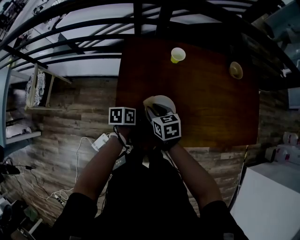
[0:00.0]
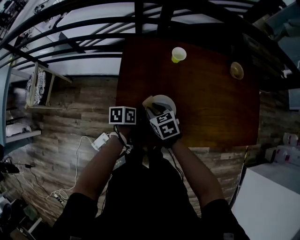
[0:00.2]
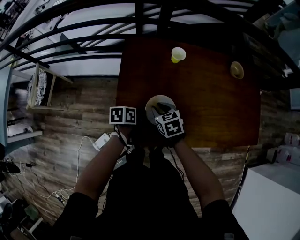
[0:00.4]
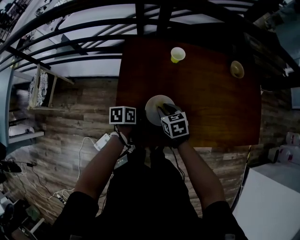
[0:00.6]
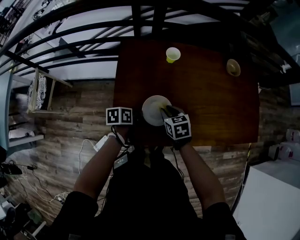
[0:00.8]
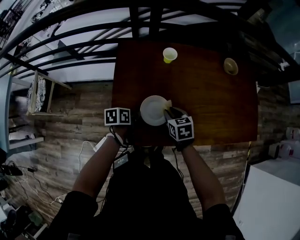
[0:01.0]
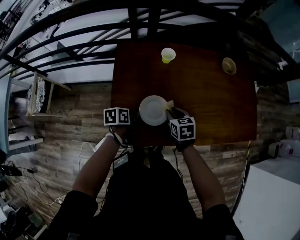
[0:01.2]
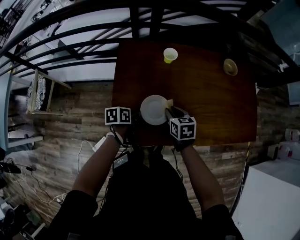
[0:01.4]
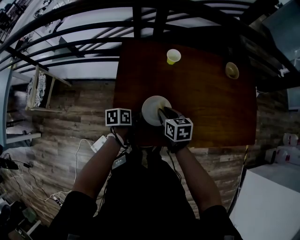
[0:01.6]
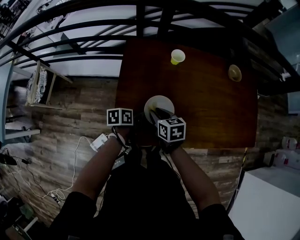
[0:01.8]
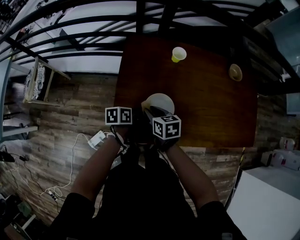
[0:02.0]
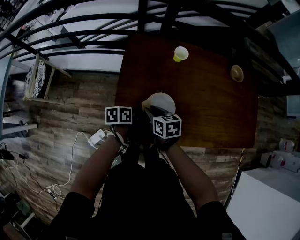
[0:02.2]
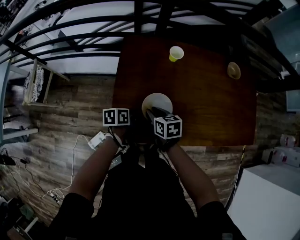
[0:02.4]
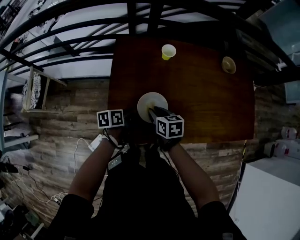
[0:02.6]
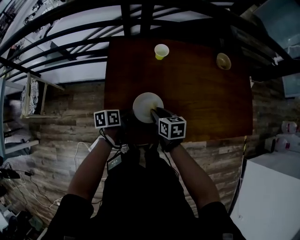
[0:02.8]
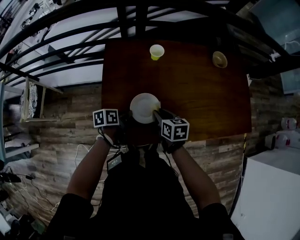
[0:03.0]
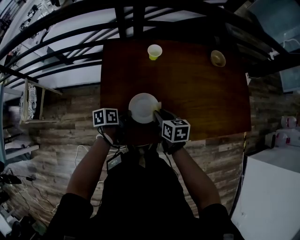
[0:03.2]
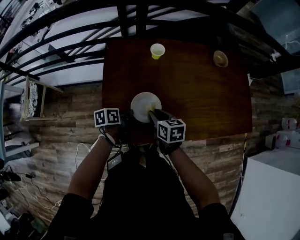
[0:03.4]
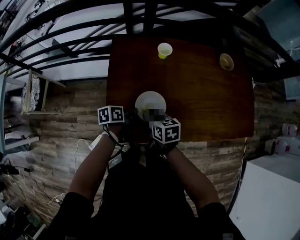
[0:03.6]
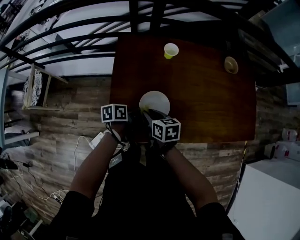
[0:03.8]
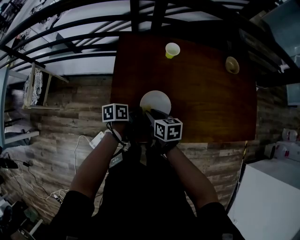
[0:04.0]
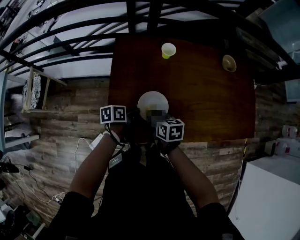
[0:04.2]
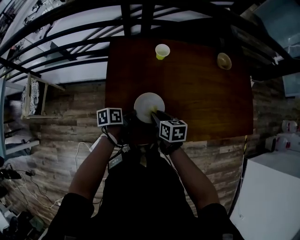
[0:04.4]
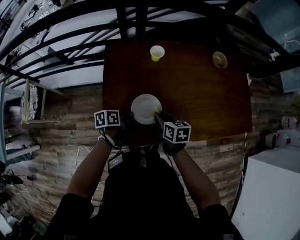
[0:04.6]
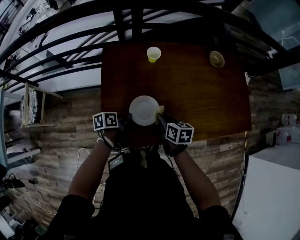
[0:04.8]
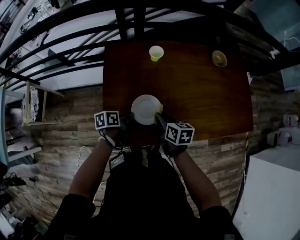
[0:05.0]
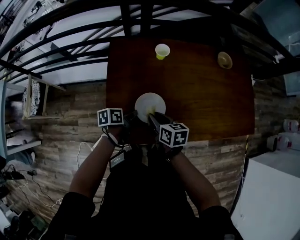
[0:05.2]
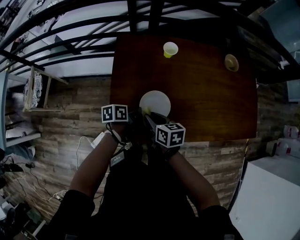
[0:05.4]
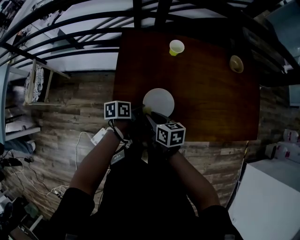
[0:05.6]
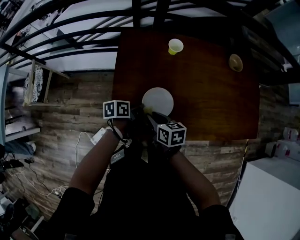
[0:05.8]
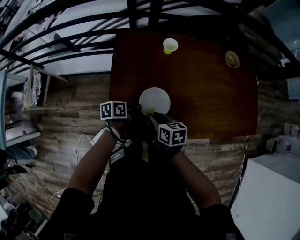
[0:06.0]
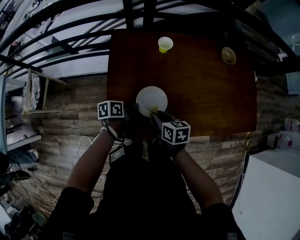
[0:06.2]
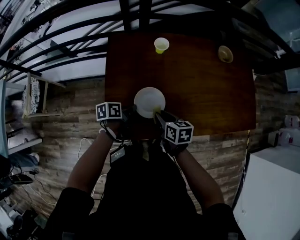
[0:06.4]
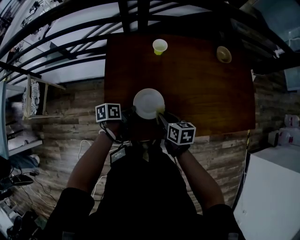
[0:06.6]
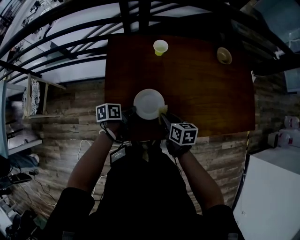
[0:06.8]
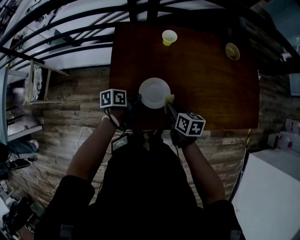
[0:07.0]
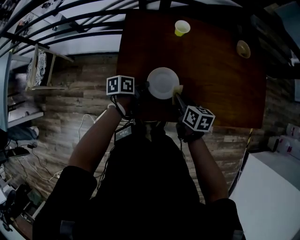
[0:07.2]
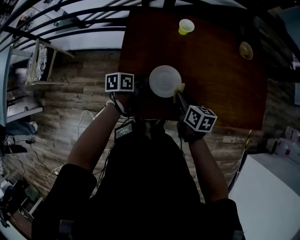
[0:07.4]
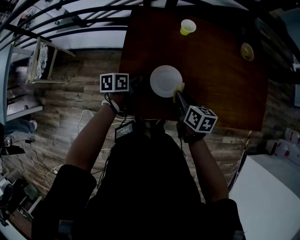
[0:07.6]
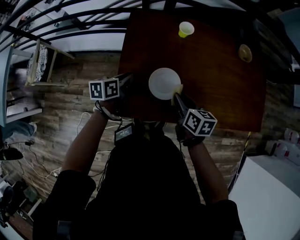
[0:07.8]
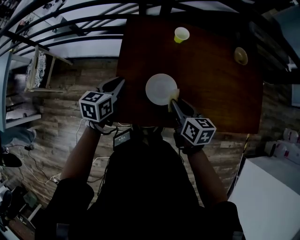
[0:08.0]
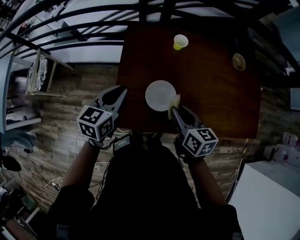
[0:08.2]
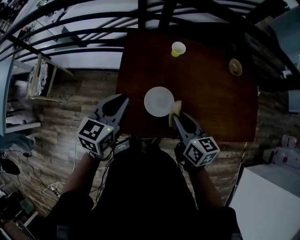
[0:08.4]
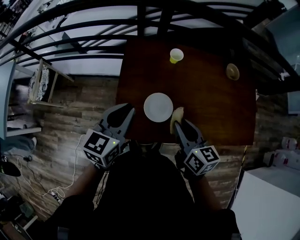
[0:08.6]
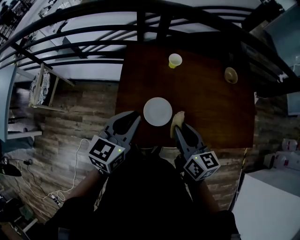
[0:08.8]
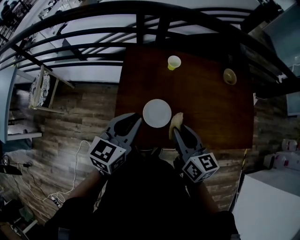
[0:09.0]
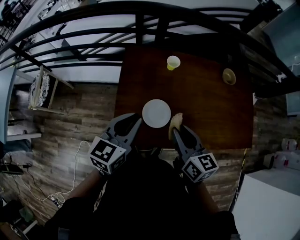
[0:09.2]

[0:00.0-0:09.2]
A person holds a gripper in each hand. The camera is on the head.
0:00.0 to 0:01.6: The right gripper is displaced to the right by about 5 cm.
0:01.6 to 0:03.0: The right gripper reaches approximately 10 cm to the left, then returns.
0:03.0 to 0:04.6: The right gripper goes to the left and returns, roughly 10 cm each way.
0:04.6 to 0:06.2: The right gripper goes to the left and returns, some 10 cm each way.
0:06.2 to 0:07.6: The right gripper changes place by roughly 5 cm; the left gripper shifts approximately 5 cm to the left.
0:07.6 to 0:09.2: Both grippers move upward, approximately 20 cm. The right gripper rotates about 20 degrees, while the left gripper changes its angle by some 50 degrees.

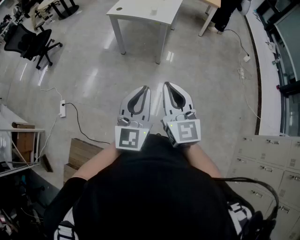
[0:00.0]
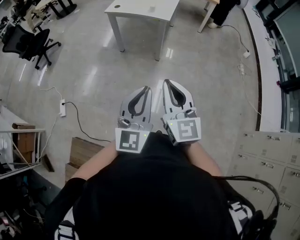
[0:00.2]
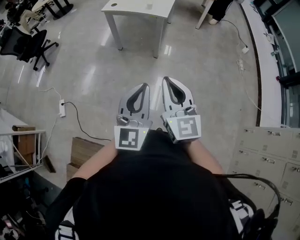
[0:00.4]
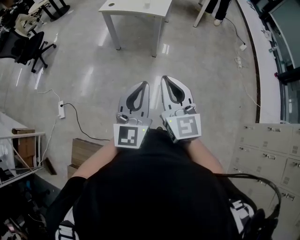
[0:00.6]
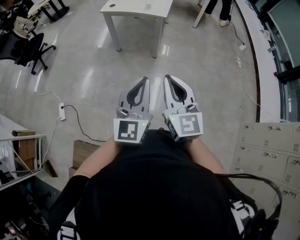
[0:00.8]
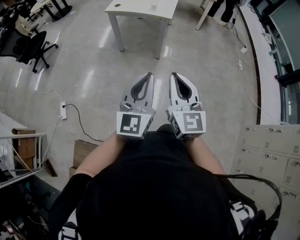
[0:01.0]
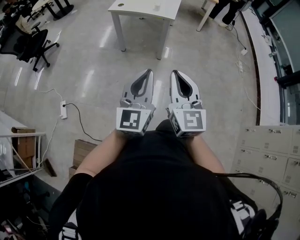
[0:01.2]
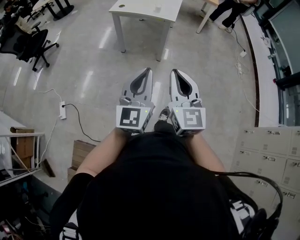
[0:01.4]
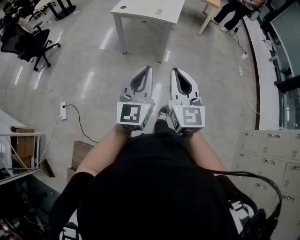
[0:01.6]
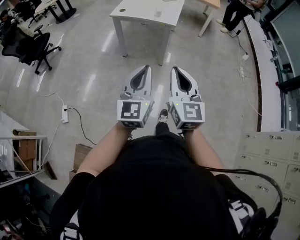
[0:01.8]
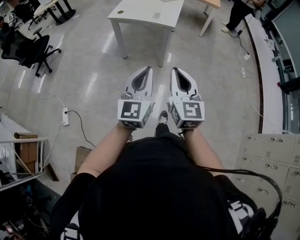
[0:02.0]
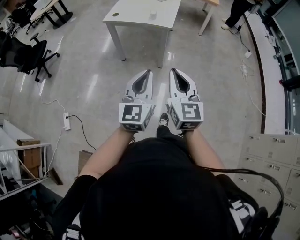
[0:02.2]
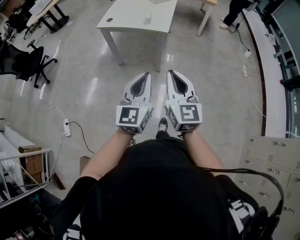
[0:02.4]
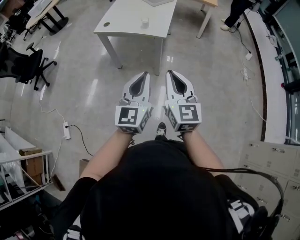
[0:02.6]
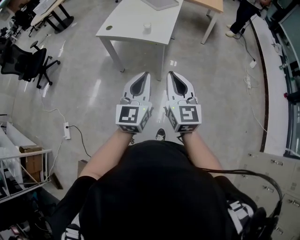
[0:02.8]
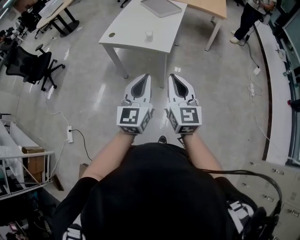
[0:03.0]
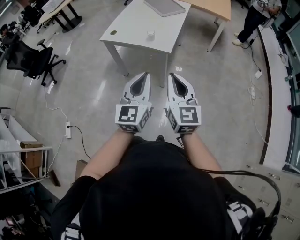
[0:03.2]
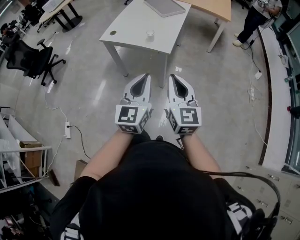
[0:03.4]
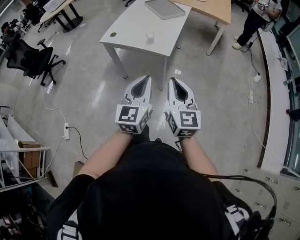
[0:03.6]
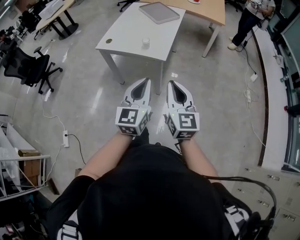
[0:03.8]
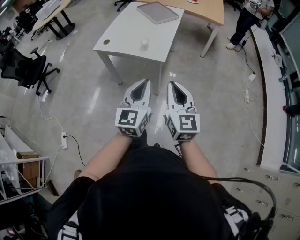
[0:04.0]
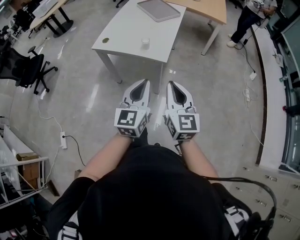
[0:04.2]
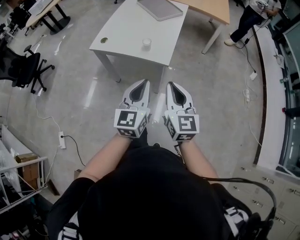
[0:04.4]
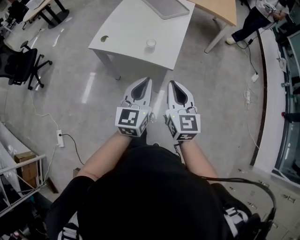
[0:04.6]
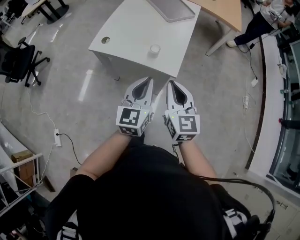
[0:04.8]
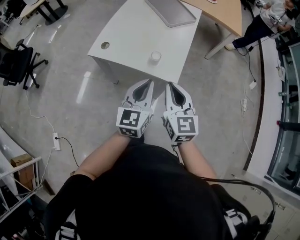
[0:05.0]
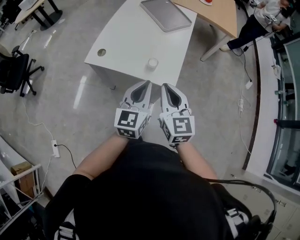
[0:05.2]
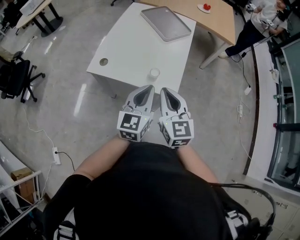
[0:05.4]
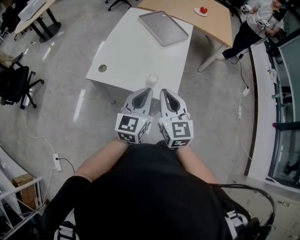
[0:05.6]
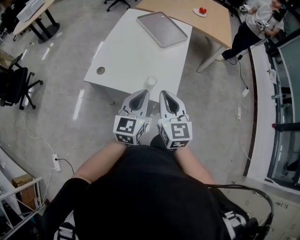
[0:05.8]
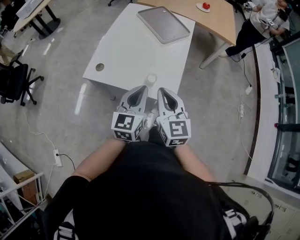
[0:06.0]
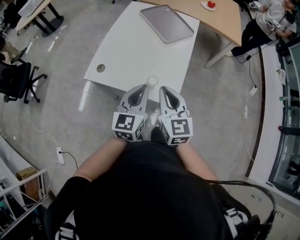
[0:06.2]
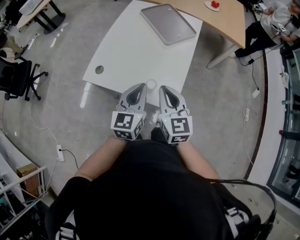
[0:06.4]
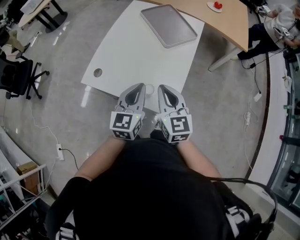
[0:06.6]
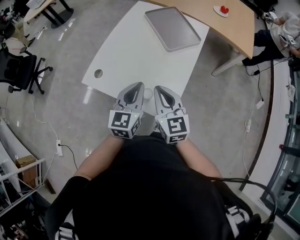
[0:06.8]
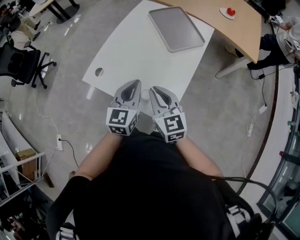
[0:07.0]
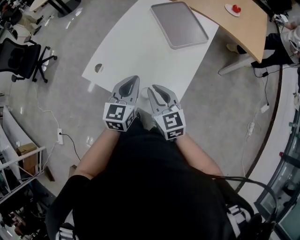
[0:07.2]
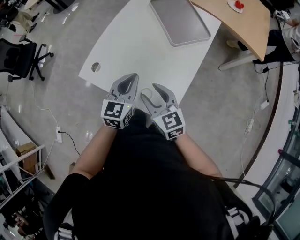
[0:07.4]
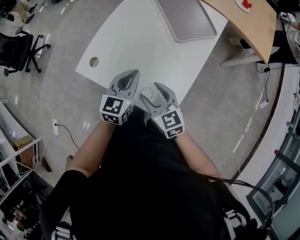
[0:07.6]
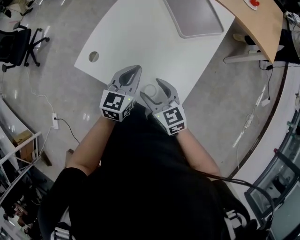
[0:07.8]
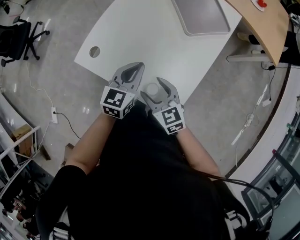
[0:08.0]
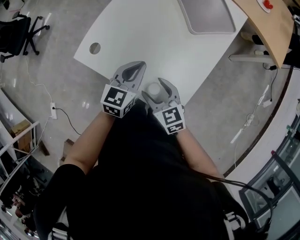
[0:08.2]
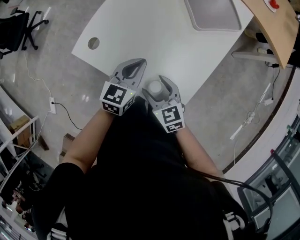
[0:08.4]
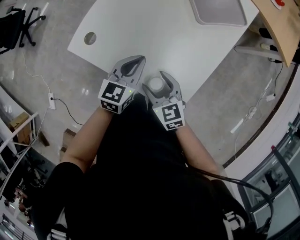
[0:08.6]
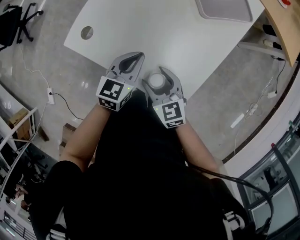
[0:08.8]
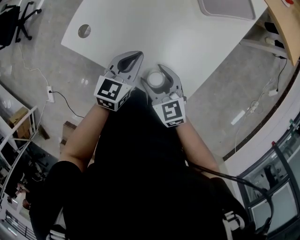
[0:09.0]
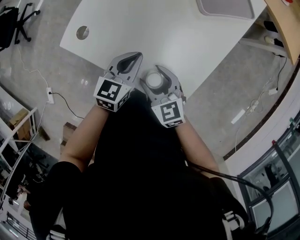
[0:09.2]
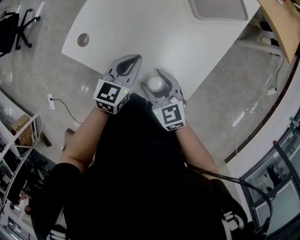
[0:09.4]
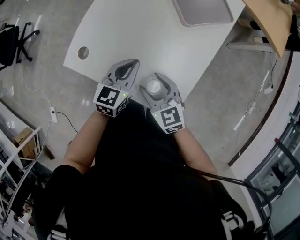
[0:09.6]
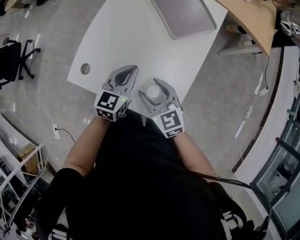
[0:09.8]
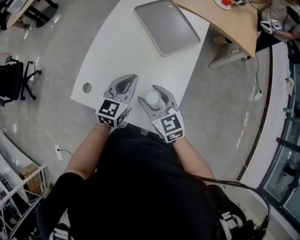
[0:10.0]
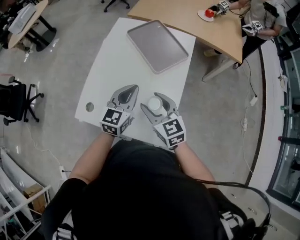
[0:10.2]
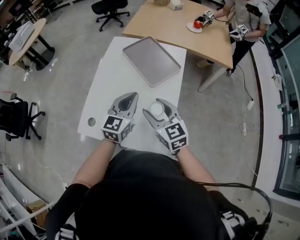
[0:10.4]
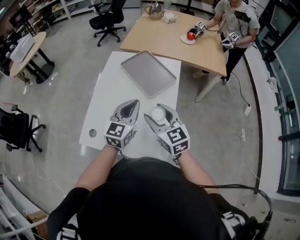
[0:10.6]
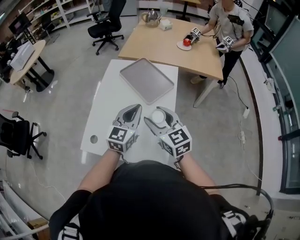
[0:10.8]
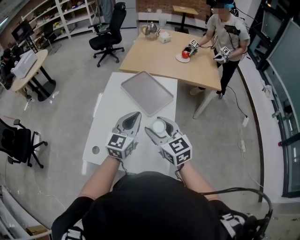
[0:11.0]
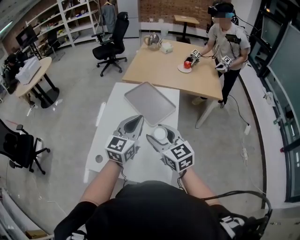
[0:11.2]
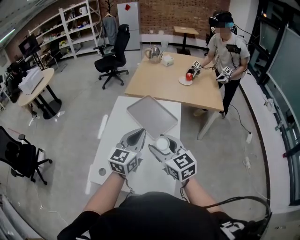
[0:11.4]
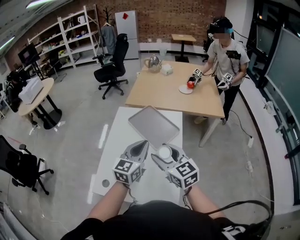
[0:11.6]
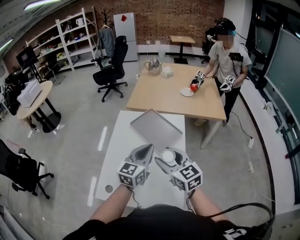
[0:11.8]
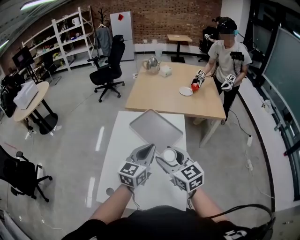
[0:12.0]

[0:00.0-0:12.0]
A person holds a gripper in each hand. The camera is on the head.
0:00.0 to 0:01.6: Both grippers move to the left, approximately 10 cm.
0:01.6 to 0:03.0: Both grippers travel together forward, roughly 35 cm.
0:03.0 to 0:04.4: The grippers both shift forward by approximately 15 cm.
0:04.4 to 0:06.0: The left gripper heads forward, covering roughly 30 cm. Meanwhile the right gripper goes some 30 cm forward and to the left.
0:06.0 to 0:07.6: The grippers both shift forward and downward by roughly 25 cm. The right gripper swivels approximately 40 degrees, and opens.
0:07.6 to 0:09.0: Both grippers move downward, some 15 cm.
0:09.0 to 0:10.4: The grippers both shift upward by some 25 cm. The left gripper rotates roughly 30 degrees, while the right gripper rotates approximately 30 degrees.
0:10.4 to 0:12.0: Both grippers travel together upward and forward, about 15 cm.

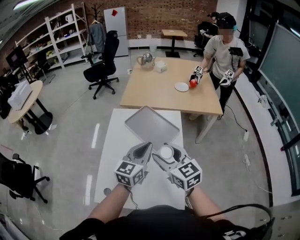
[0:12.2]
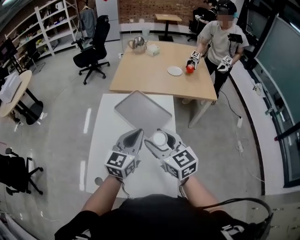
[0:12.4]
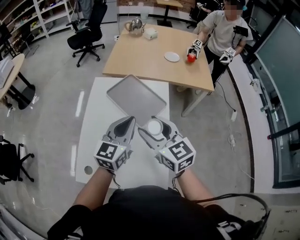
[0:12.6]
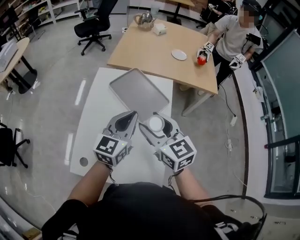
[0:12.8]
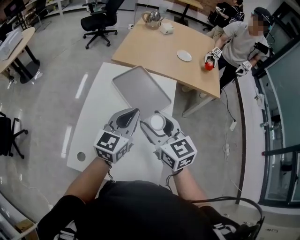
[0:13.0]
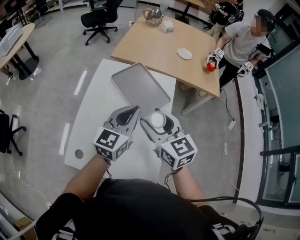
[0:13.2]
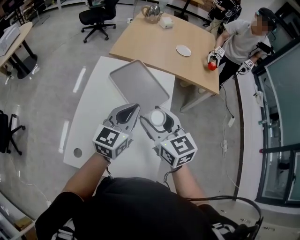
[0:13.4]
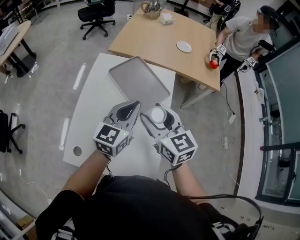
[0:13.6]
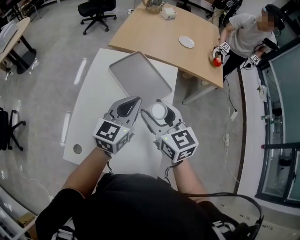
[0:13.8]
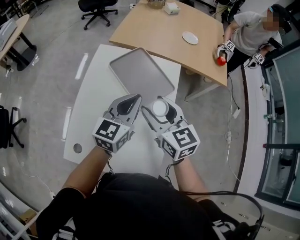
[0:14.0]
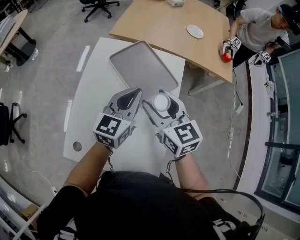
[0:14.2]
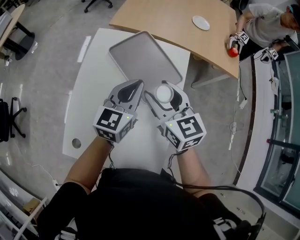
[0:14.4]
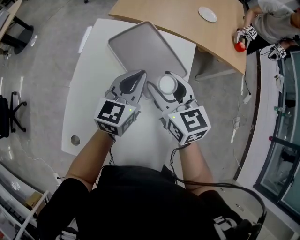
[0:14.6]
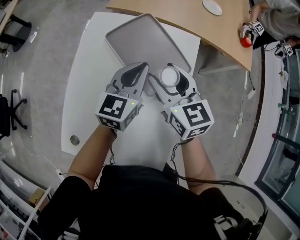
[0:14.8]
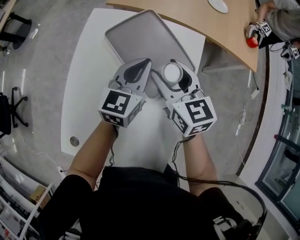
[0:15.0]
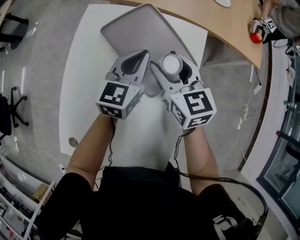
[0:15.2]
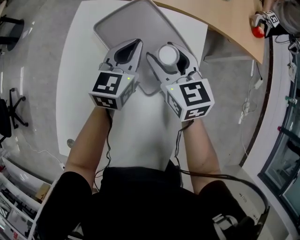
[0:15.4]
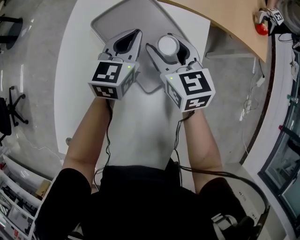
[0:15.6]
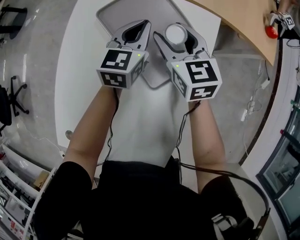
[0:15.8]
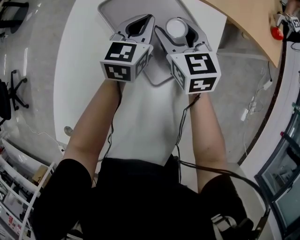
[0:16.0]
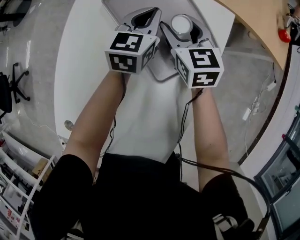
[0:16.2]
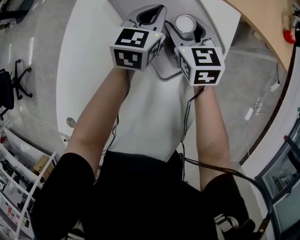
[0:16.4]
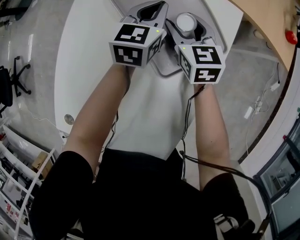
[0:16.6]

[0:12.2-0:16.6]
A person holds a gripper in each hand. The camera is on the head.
0:12.2 to 0:13.6: The two grippers go some 5 cm forward.
0:13.6 to 0:15.2: The grippers both shift forward and downward by some 30 cm.
0:15.2 to 0:16.6: The right gripper shifts approximately 15 cm downward, while the left gripper is displaced downward and forward by approximately 10 cm.
